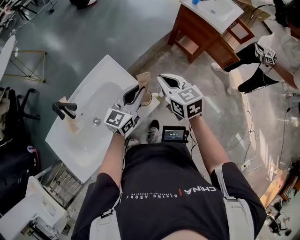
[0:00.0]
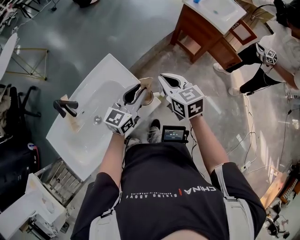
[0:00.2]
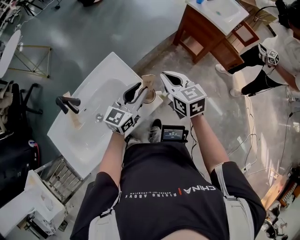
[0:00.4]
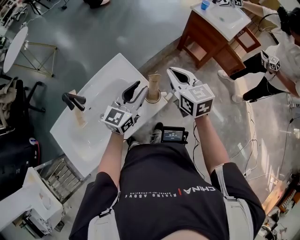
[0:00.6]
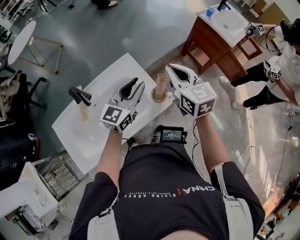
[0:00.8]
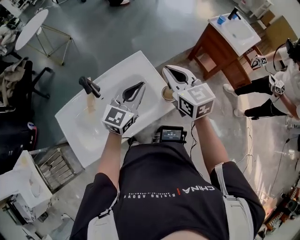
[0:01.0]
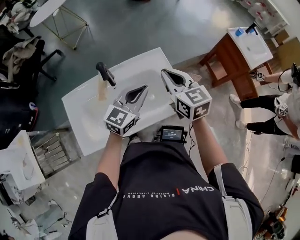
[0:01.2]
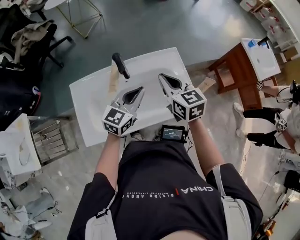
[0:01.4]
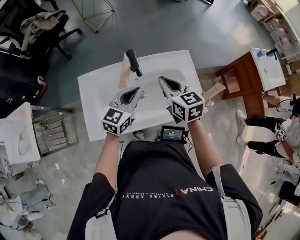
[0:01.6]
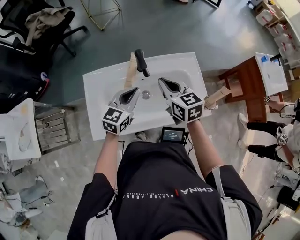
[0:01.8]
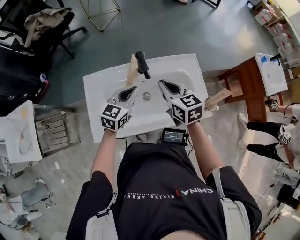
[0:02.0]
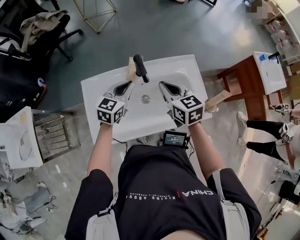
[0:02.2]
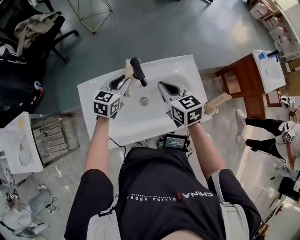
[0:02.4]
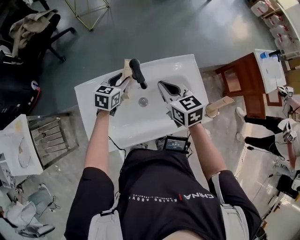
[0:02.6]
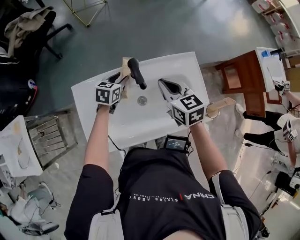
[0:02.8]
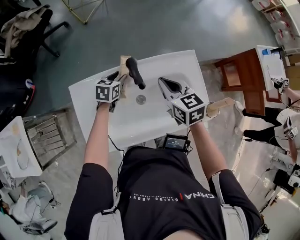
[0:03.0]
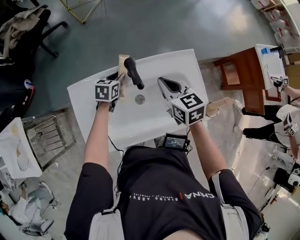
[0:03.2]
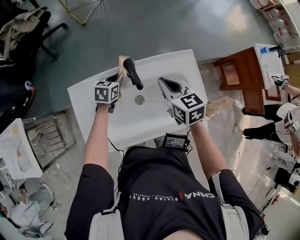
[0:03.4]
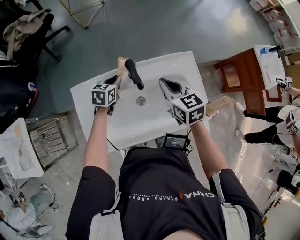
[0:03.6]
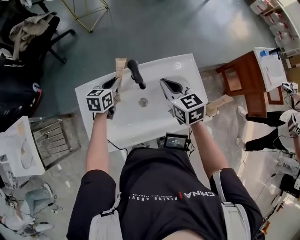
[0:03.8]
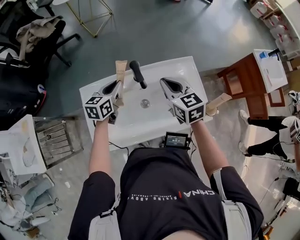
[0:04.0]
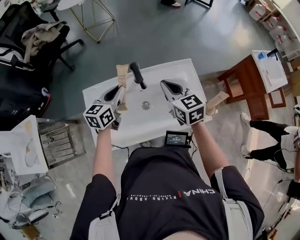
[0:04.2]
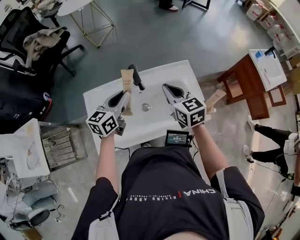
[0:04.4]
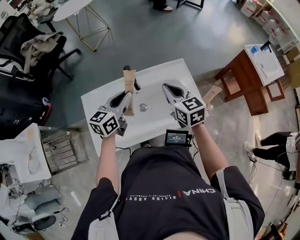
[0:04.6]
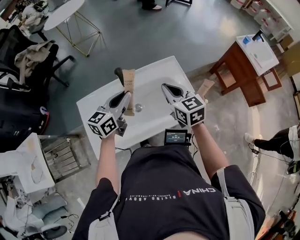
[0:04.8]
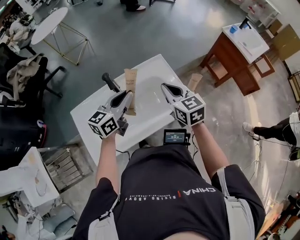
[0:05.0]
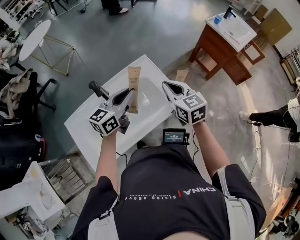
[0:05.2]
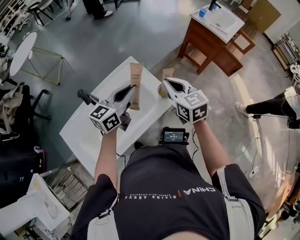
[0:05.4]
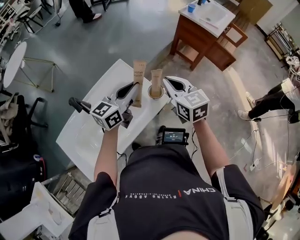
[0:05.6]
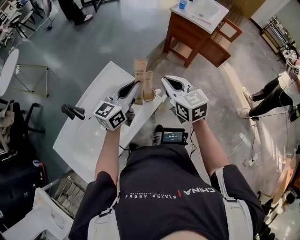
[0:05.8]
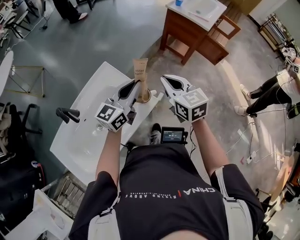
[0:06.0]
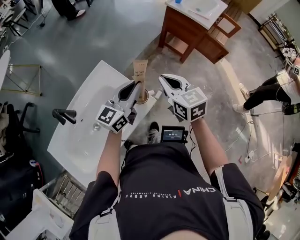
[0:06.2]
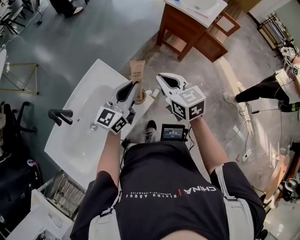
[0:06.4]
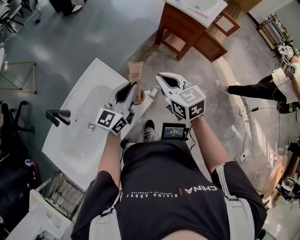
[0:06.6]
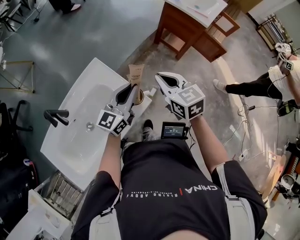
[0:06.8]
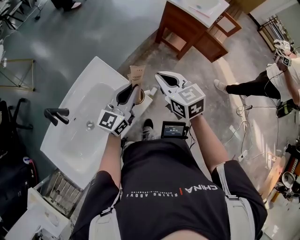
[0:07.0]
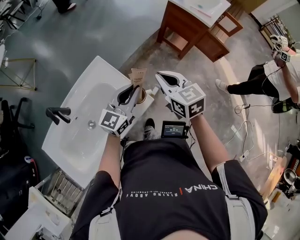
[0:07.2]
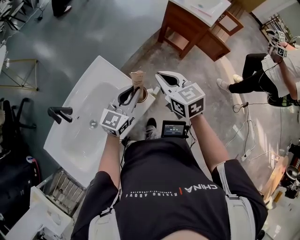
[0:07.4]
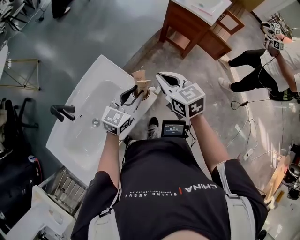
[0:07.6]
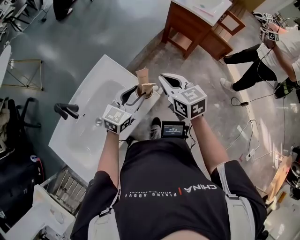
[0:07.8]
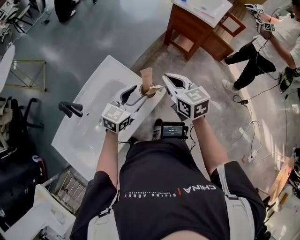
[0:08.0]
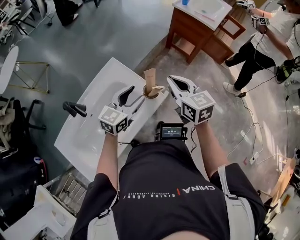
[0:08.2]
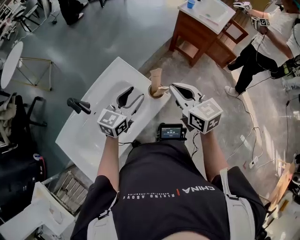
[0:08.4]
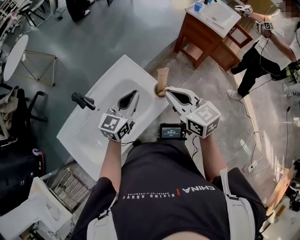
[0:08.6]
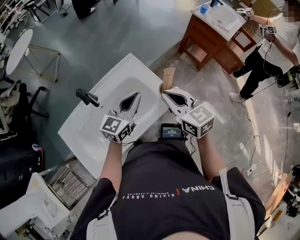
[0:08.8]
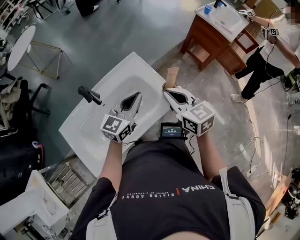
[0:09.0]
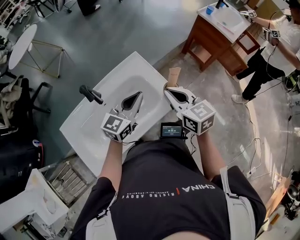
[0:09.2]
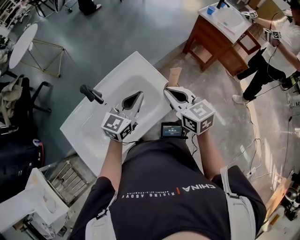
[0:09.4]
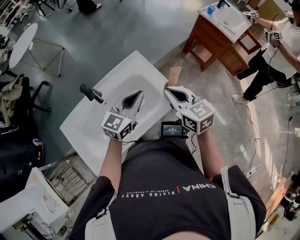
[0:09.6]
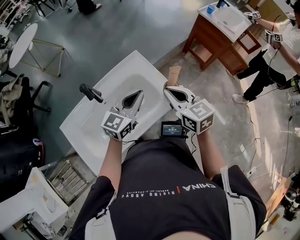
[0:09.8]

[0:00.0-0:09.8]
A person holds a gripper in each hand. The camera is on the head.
0:00.0 to 0:01.4: The right gripper travels to the left by approximately 25 cm, and turns by some 20 degrees. Meanwhile the left gripper moves to the left and backward, roughly 25 cm, and changes its angle by some 20 degrees.
0:01.4 to 0:02.8: The left gripper shifts about 30 cm downward, forward and to the left, changes its angle by about 30 degrees, and opens its fingers, while the right gripper is displaced to the left, downward and forward by roughly 15 cm.
0:02.8 to 0:04.2: The right gripper moves upward, roughly 5 cm. The left gripper is displaced upward and backward by approximately 20 cm, swivels about 20 degrees, and closes up.
0:04.2 to 0:05.6: The right gripper shifts by roughly 30 cm, and rotates roughly 30 degrees. The left gripper shifts by approximately 35 cm, and rotates some 50 degrees.
0:05.6 to 0:07.0: The left gripper travels to the right and downward by roughly 10 cm. Meanwhile the right gripper heads forward and to the right, covering approximately 10 cm.
0:07.0 to 0:08.4: The right gripper moves backward and upward, some 10 cm, while the left gripper travels to the left and backward by roughly 10 cm, and opens up.
0:08.4 to 0:09.8: The right gripper heads to the left, covering roughly 10 cm; the left gripper heads to the left, covering approximately 5 cm, and closes.

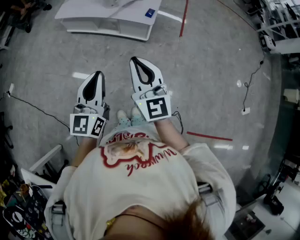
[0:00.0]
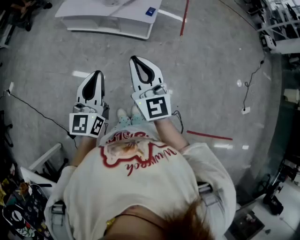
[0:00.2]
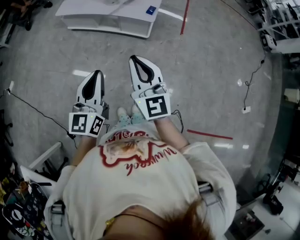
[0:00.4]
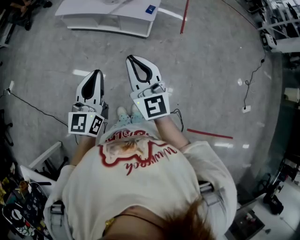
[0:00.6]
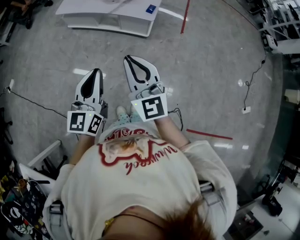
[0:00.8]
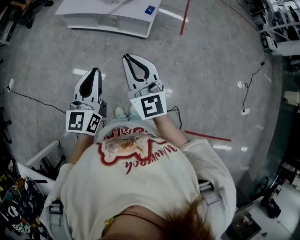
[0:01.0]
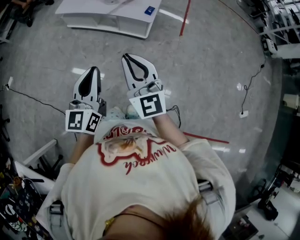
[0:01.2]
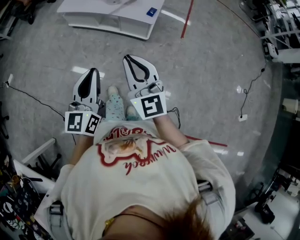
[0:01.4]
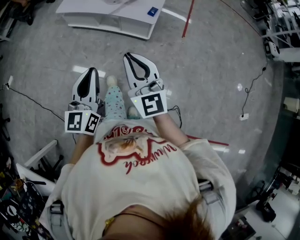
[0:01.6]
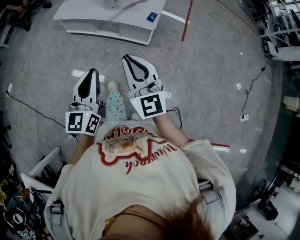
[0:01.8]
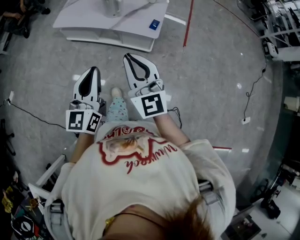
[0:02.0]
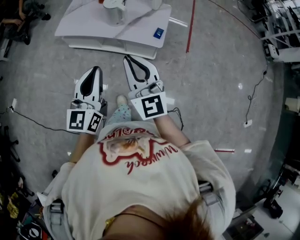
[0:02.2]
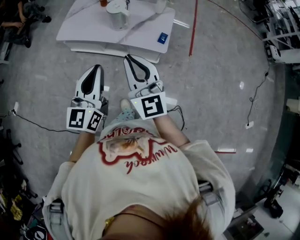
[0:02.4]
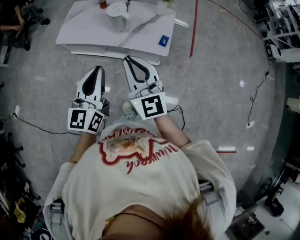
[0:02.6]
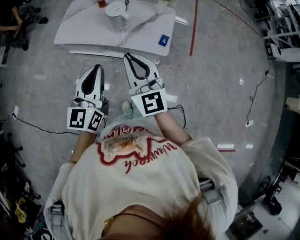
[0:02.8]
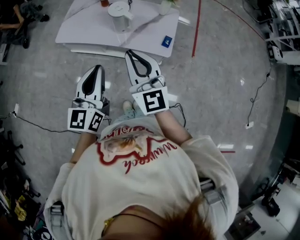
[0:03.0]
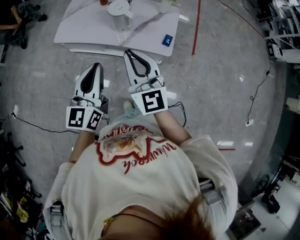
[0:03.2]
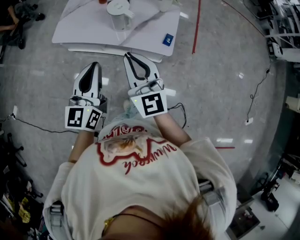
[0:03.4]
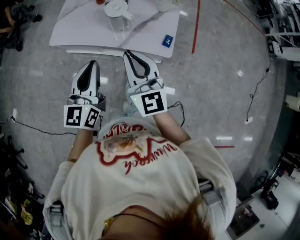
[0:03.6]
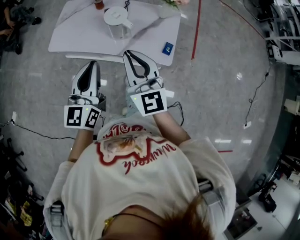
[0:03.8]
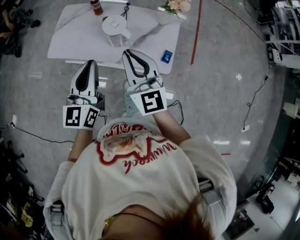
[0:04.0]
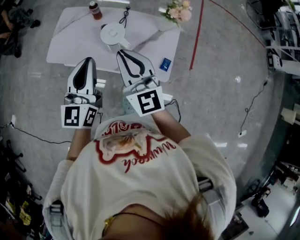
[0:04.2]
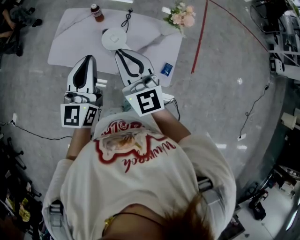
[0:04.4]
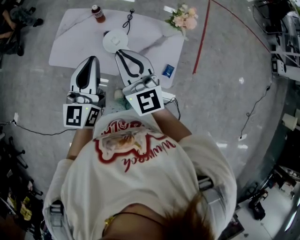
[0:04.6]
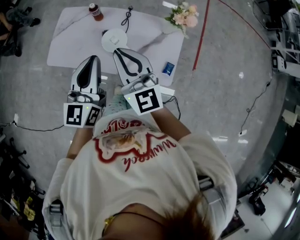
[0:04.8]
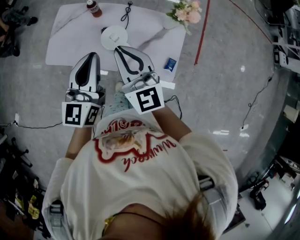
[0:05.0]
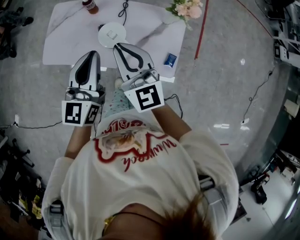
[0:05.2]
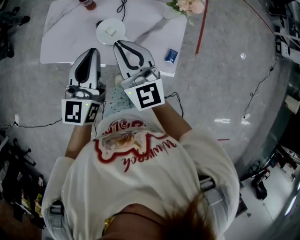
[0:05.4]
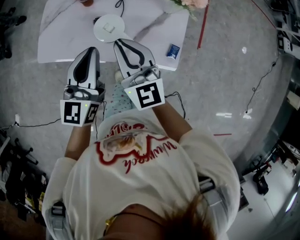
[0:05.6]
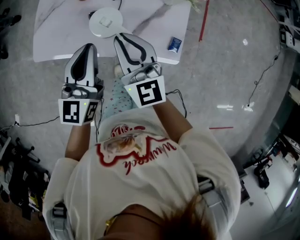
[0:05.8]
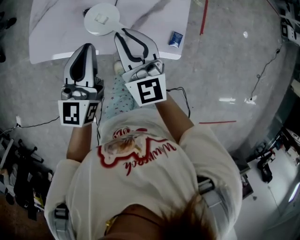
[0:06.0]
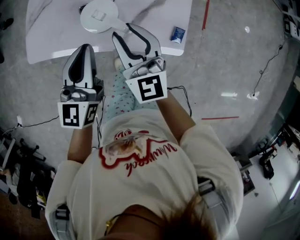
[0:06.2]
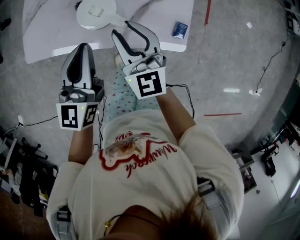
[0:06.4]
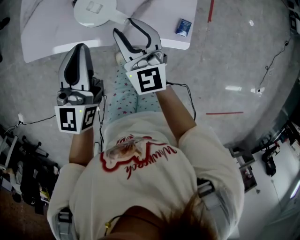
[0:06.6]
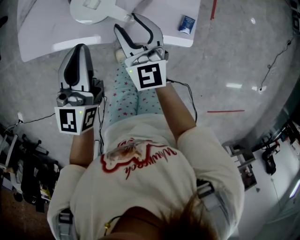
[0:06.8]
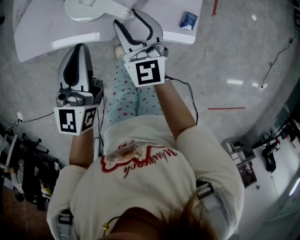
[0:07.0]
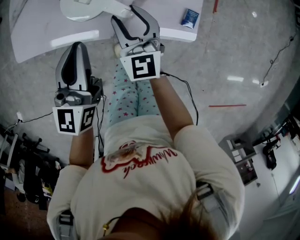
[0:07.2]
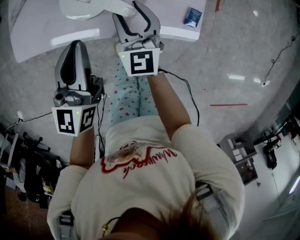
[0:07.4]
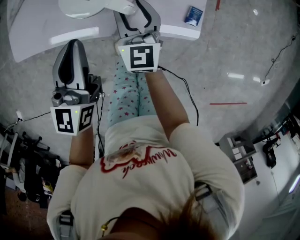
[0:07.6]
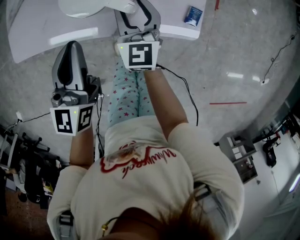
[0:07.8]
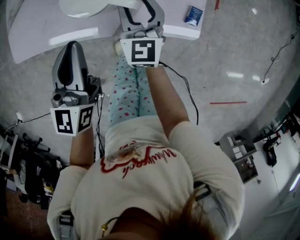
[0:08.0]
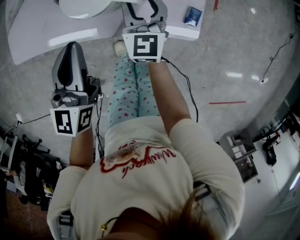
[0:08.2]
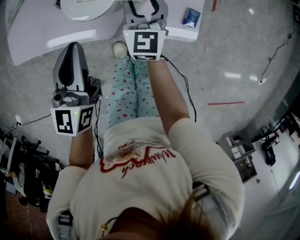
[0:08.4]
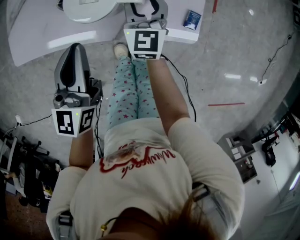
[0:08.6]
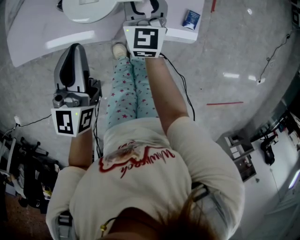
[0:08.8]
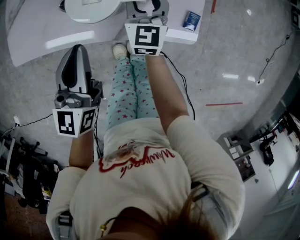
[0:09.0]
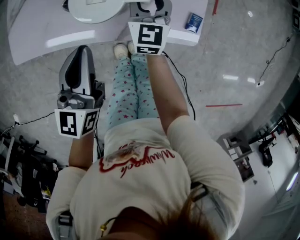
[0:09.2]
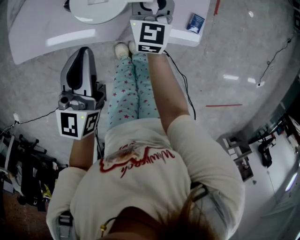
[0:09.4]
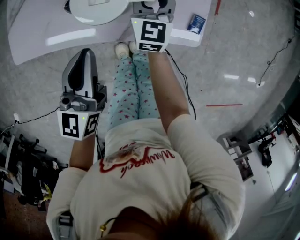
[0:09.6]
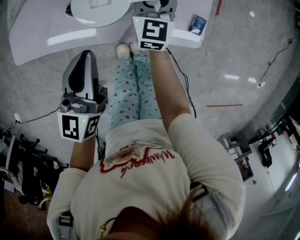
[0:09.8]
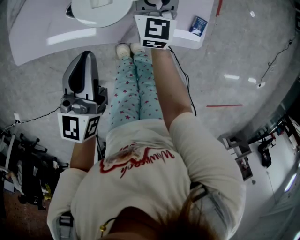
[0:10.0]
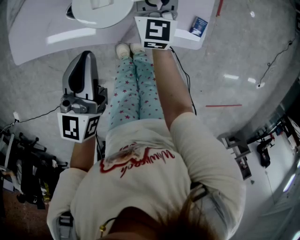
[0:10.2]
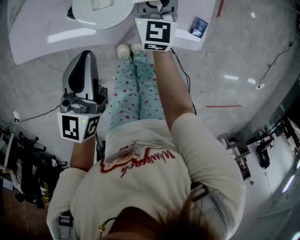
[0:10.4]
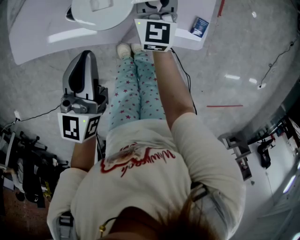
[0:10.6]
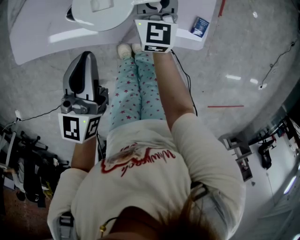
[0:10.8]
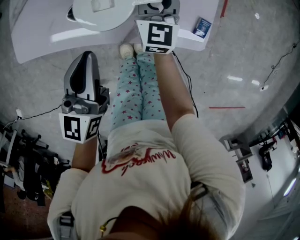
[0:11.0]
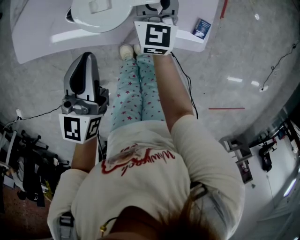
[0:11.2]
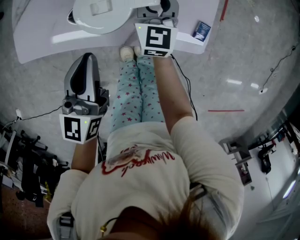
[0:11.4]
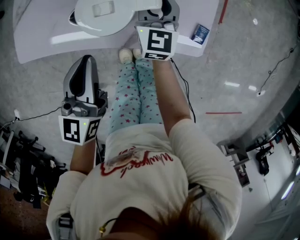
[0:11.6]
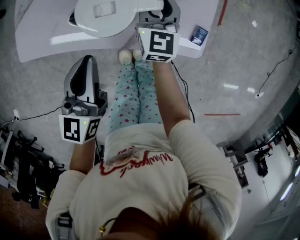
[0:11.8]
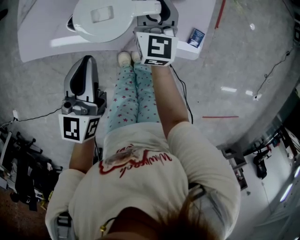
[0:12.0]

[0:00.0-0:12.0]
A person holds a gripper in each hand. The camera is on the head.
0:00.0 to 0:01.6: There are only small adjustments of the grippers.
0:01.6 to 0:03.0: The grippers both shift forward by some 30 cm.
0:03.0 to 0:04.4: The two grippers go about 25 cm forward.
0:04.4 to 0:06.0: The left gripper travels downward and forward by some 15 cm. The right gripper heads downward, covering approximately 15 cm.
0:06.0 to 0:07.6: The left gripper moves downward, some 10 cm. The right gripper heads downward, covering roughly 20 cm, and opens up.
0:07.6 to 0:09.0: The right gripper travels forward by approximately 5 cm.
0:09.0 to 0:12.0: The grippers stay close to where they were, moving slightly.

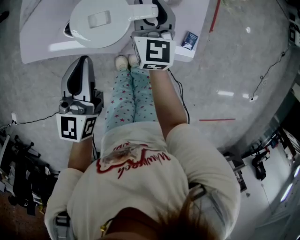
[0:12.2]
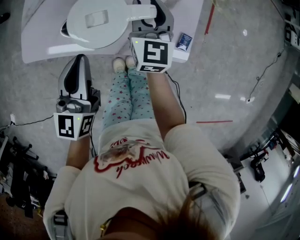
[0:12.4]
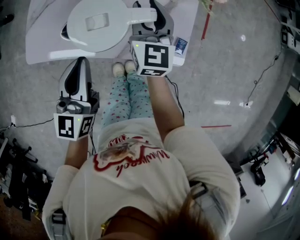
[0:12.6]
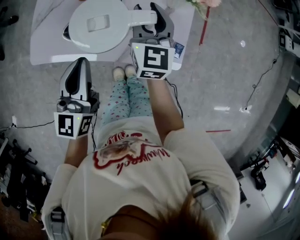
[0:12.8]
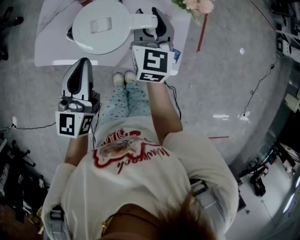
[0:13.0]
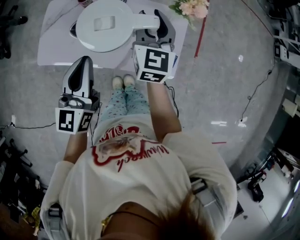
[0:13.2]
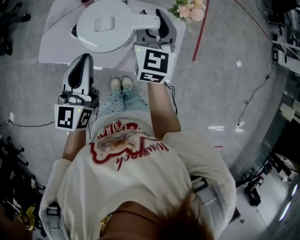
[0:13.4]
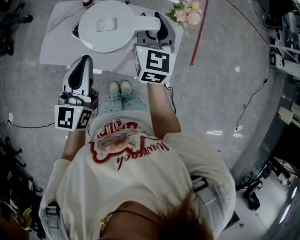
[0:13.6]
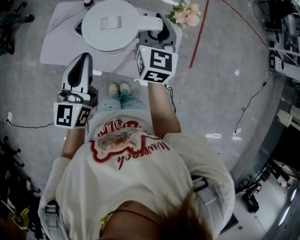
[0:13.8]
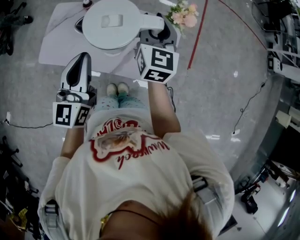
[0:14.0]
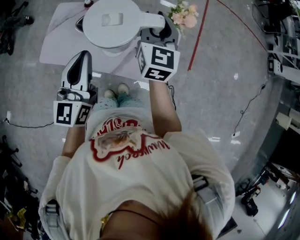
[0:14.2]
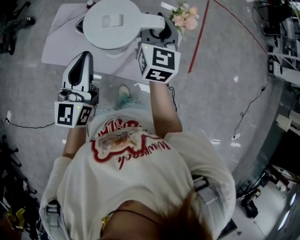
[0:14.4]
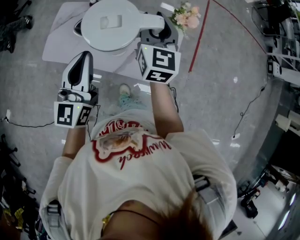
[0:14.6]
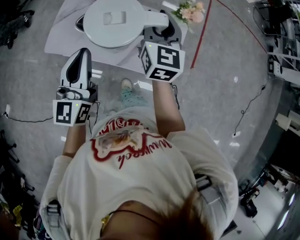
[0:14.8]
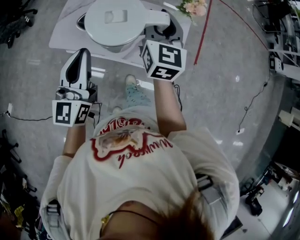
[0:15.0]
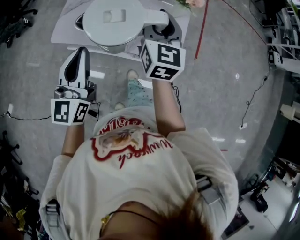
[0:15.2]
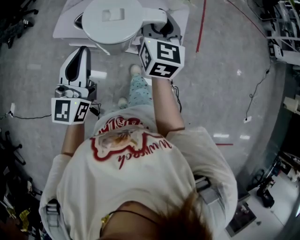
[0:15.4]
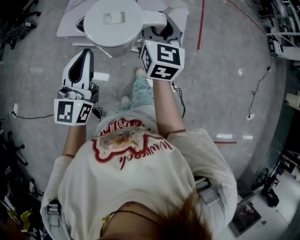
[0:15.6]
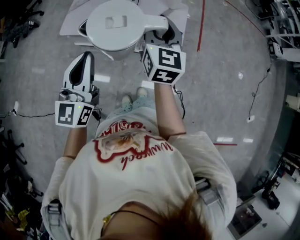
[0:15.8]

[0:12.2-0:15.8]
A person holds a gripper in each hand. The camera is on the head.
0:12.2 to 0:14.0: Both grippers move upward, some 20 cm.
0:14.0 to 0:15.8: Both grippers move backward, about 30 cm.
